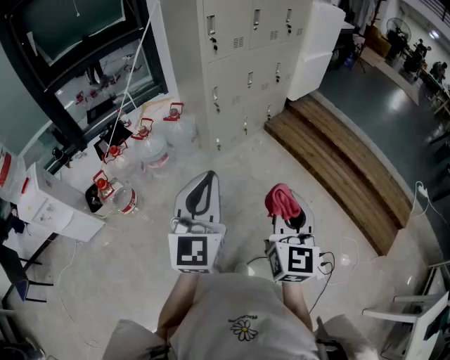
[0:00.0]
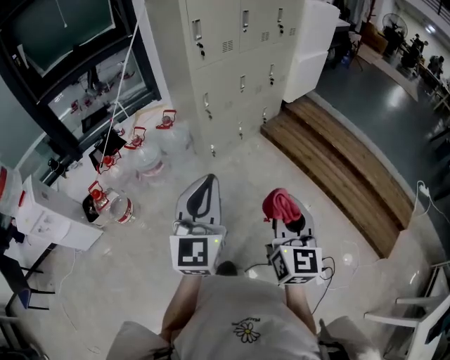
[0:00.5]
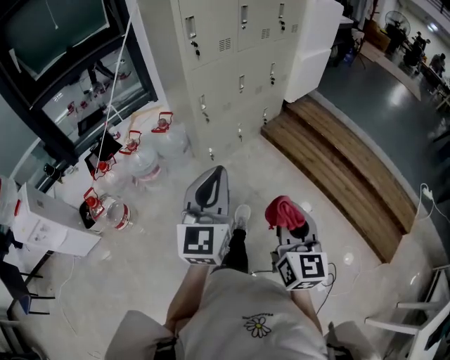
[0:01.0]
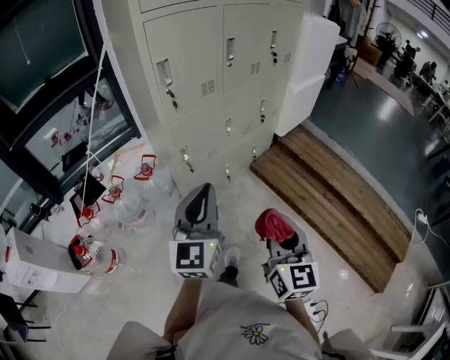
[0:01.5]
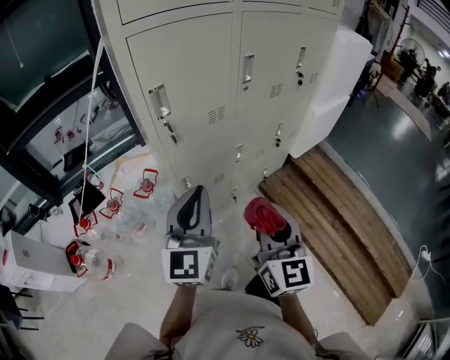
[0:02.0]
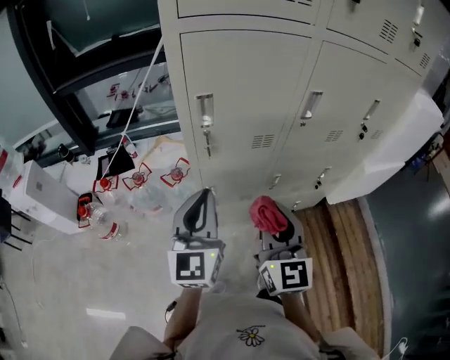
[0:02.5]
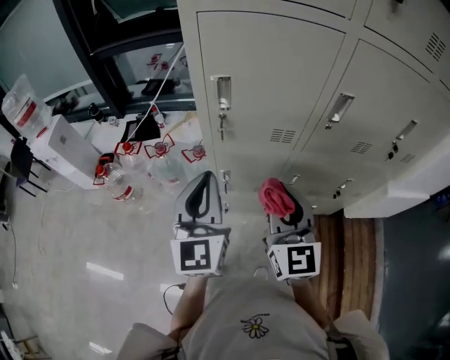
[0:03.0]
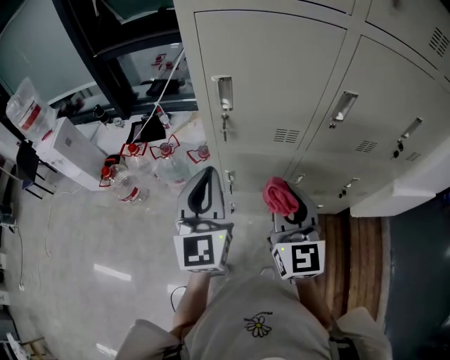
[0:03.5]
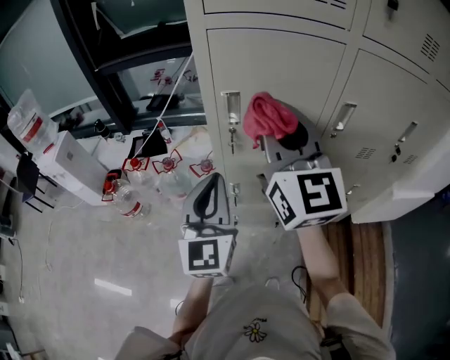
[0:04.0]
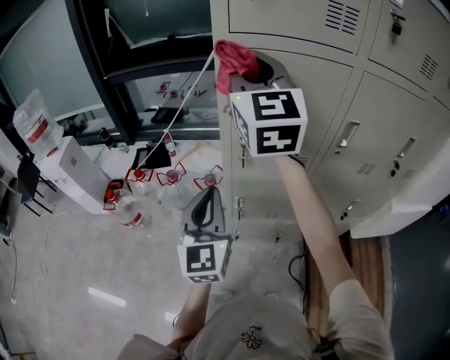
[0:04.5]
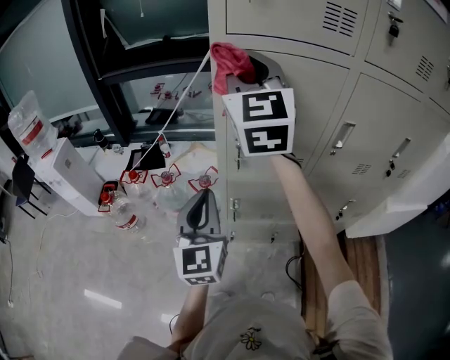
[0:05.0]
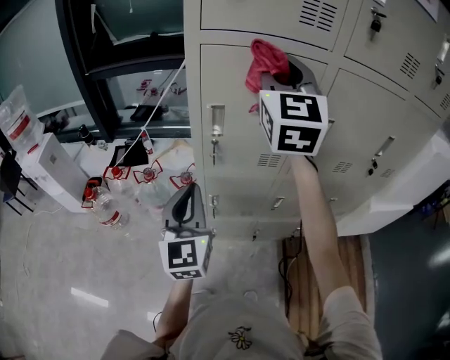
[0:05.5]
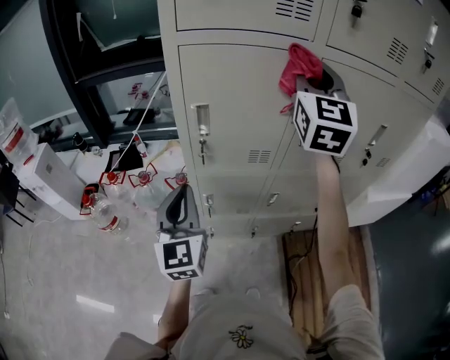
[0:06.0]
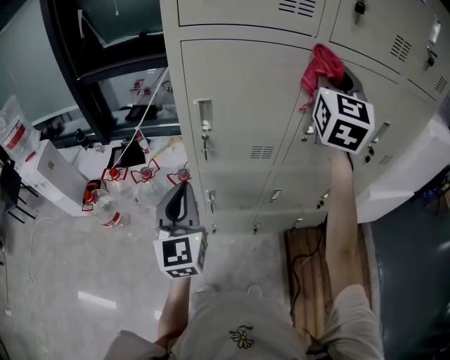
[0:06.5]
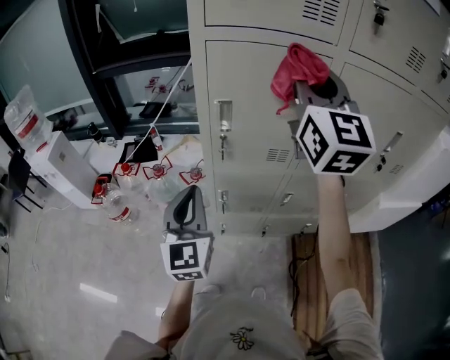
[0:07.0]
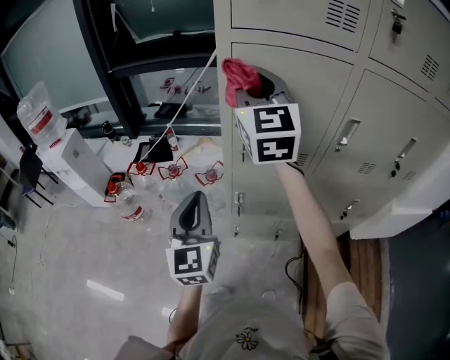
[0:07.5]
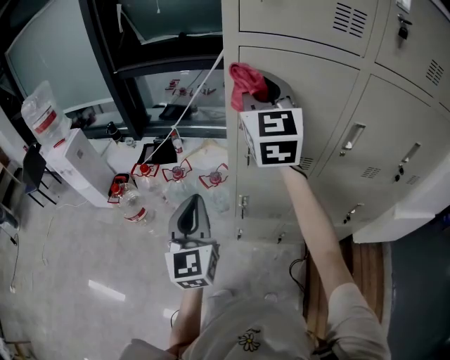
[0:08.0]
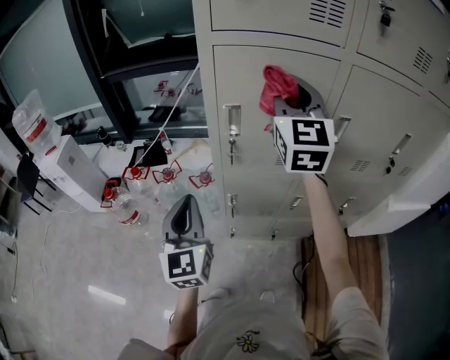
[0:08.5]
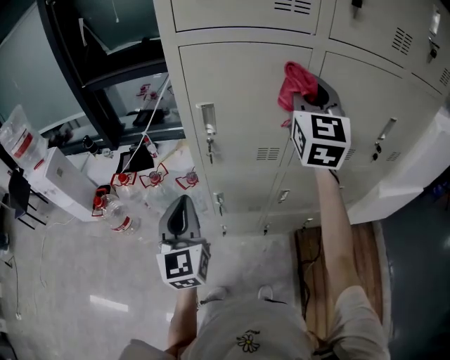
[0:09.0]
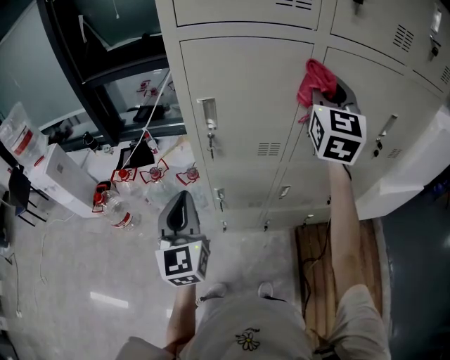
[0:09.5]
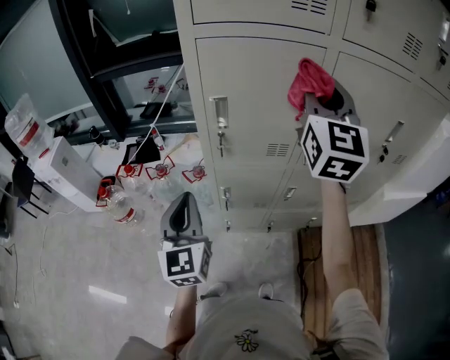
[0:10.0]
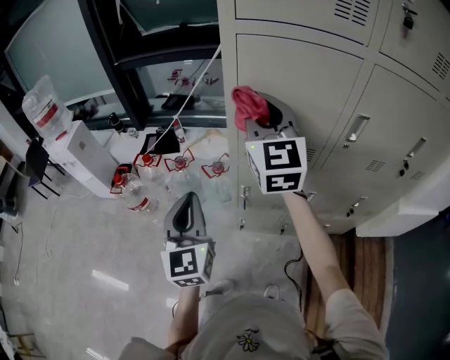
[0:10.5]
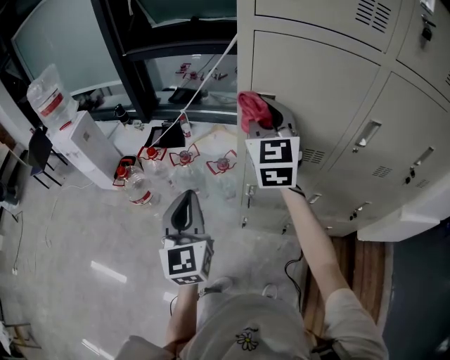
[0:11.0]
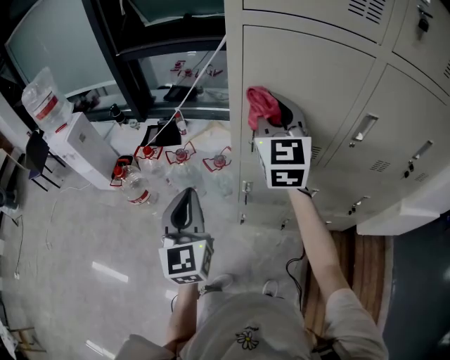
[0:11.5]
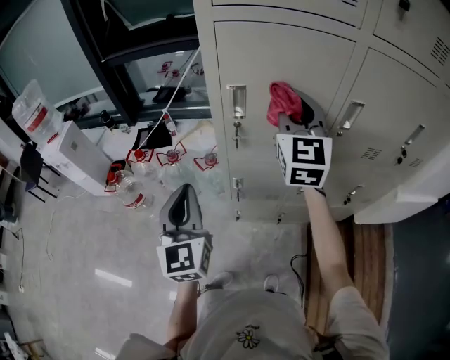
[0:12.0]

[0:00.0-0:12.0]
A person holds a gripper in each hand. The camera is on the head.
0:00.0 to 0:02.0: The two grippers travel together, forward, some 50 cm.
0:02.0 to 0:04.0: The right gripper changes place by about 30 cm, and rotates about 40 degrees; the left gripper changes place by about 10 cm, and swivels approximately 40 degrees.
0:04.0 to 0:06.0: The right gripper is displaced to the right, upward and forward by approximately 20 cm, and swivels some 30 degrees.
0:06.0 to 0:08.0: The left gripper moves to the left, about 10 cm, while the right gripper moves to the left, approximately 20 cm, and changes its angle by roughly 20 degrees.
0:08.0 to 0:10.0: The right gripper goes some 20 cm to the right.
0:10.0 to 0:12.0: The right gripper travels downward and forward by roughly 10 cm, and goes to the left and returns, about 20 cm each way.

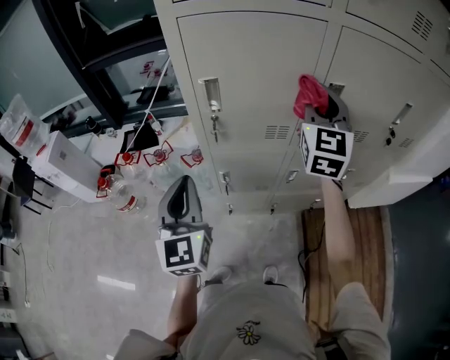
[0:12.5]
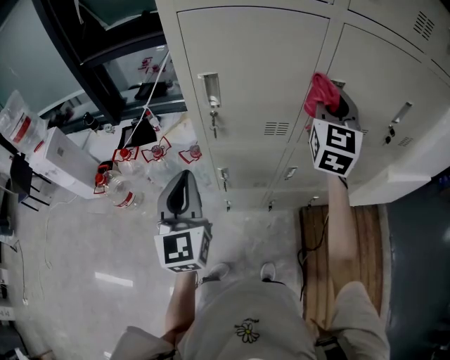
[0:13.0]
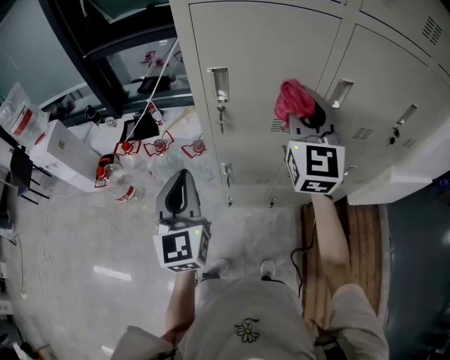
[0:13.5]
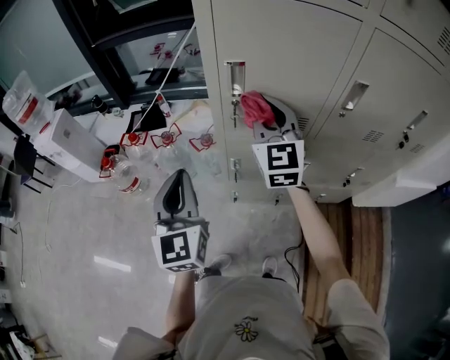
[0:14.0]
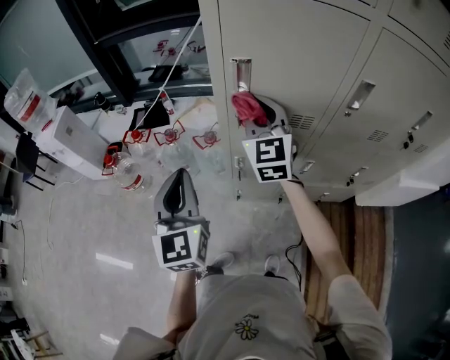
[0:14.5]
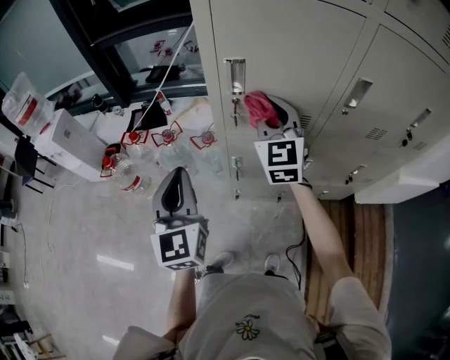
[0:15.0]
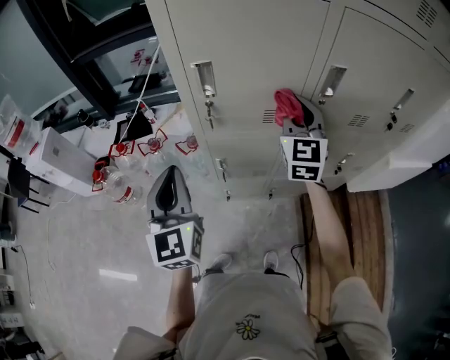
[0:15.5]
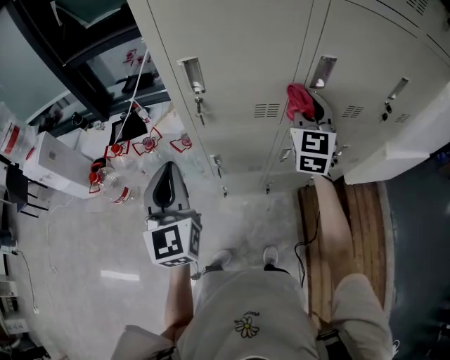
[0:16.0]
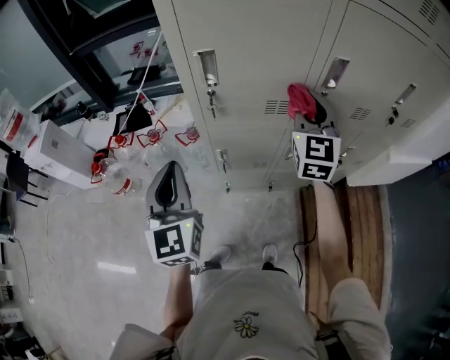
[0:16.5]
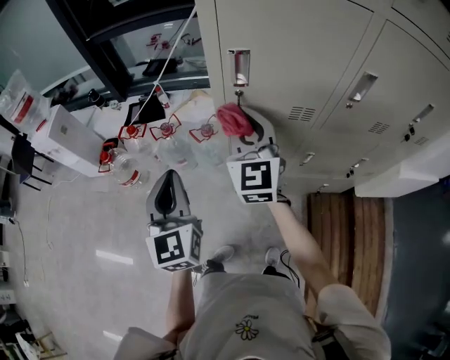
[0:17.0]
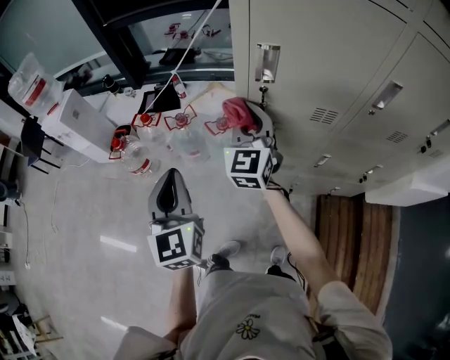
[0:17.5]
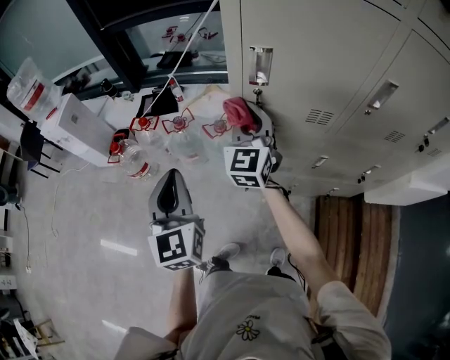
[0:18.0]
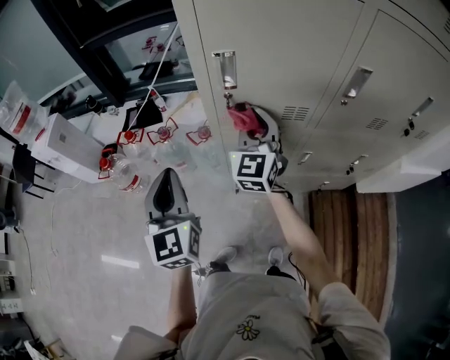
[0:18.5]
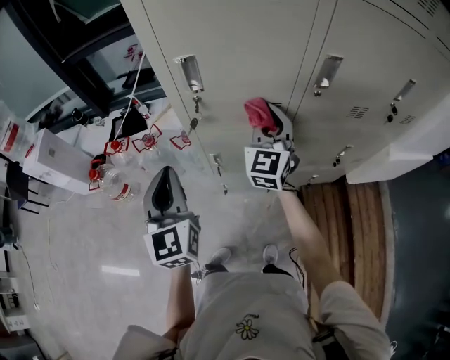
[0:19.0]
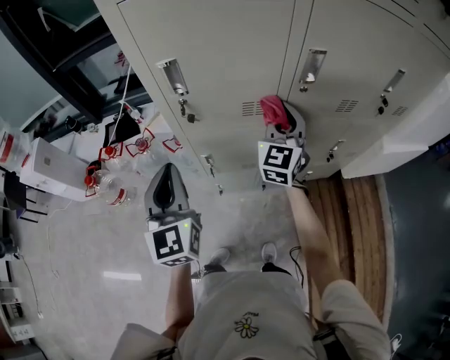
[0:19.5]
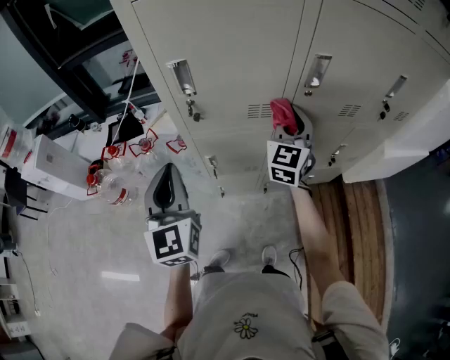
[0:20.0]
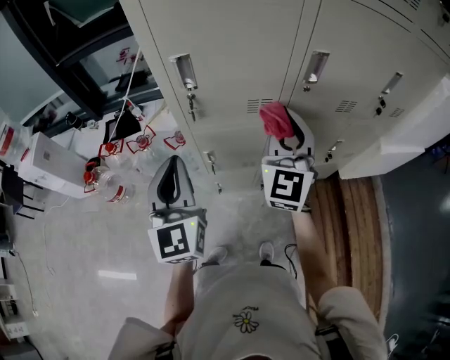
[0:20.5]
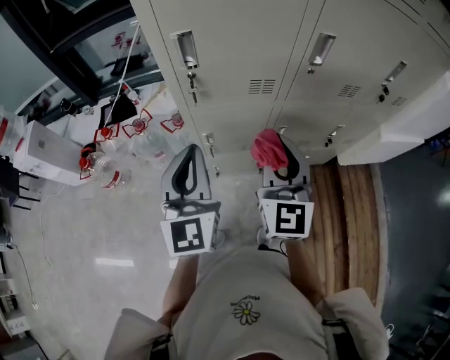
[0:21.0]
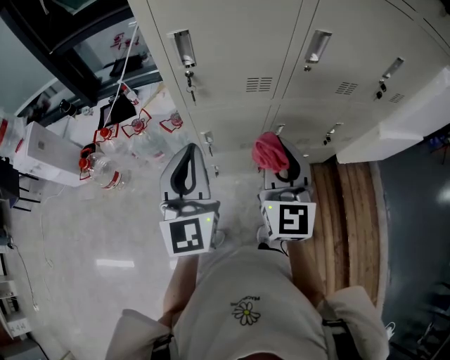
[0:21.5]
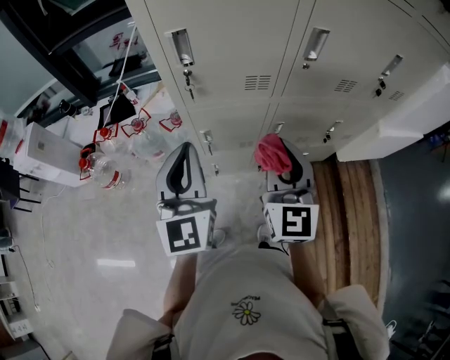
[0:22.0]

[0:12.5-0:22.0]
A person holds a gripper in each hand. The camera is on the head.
0:12.5 to 0:14.5: The left gripper is displaced to the left by some 5 cm. Meanwhile the right gripper goes some 25 cm to the left and downward, and swivels about 20 degrees.
0:14.5 to 0:16.5: The right gripper heads to the right, covering roughly 20 cm.
0:16.5 to 0:18.0: The left gripper heads to the left, covering roughly 10 cm. Meanwhile the right gripper shifts some 25 cm to the left.
0:18.0 to 0:20.0: The left gripper travels to the right by roughly 10 cm. Meanwhile the right gripper heads to the right, covering roughly 25 cm, and changes its angle by approximately 20 degrees.
0:20.0 to 0:22.0: The left gripper shifts by some 5 cm. The right gripper moves backward, about 20 cm.

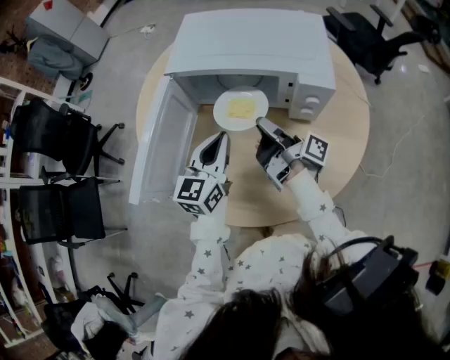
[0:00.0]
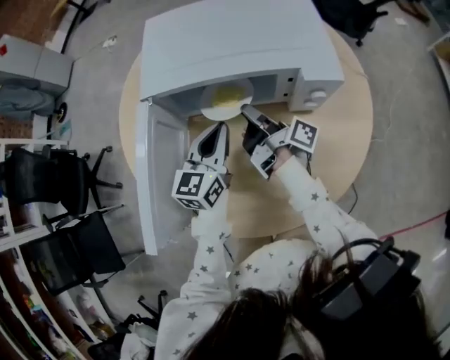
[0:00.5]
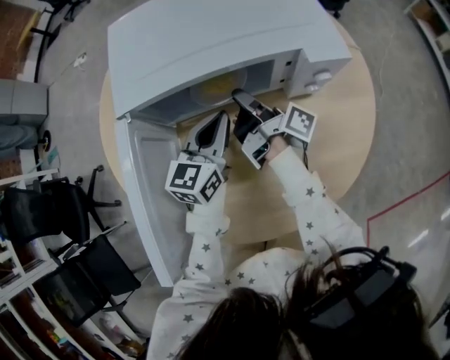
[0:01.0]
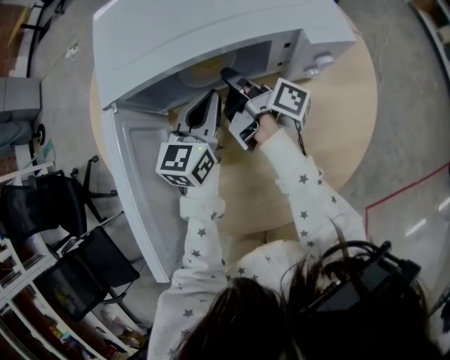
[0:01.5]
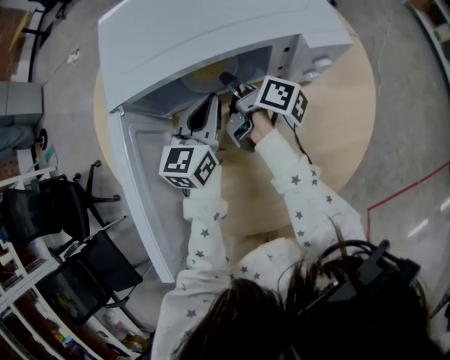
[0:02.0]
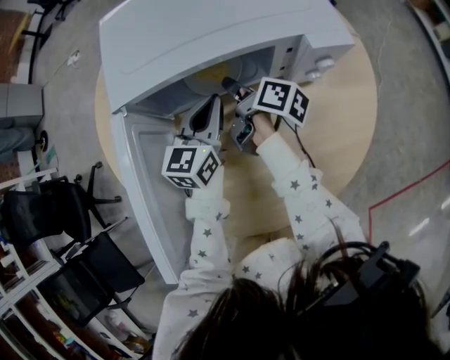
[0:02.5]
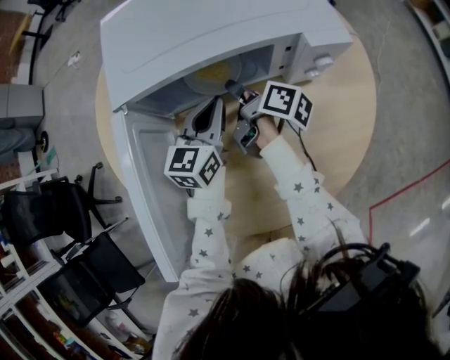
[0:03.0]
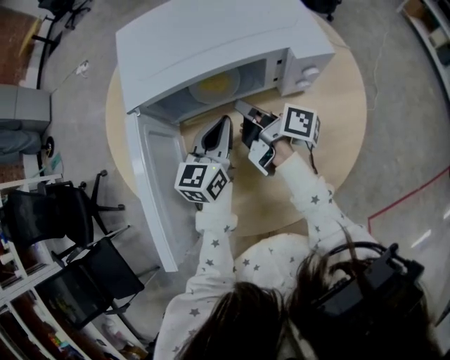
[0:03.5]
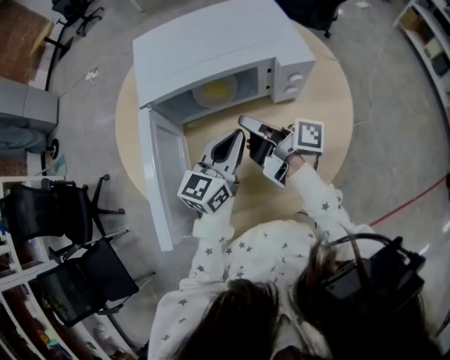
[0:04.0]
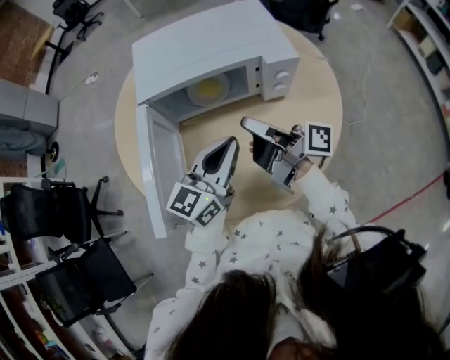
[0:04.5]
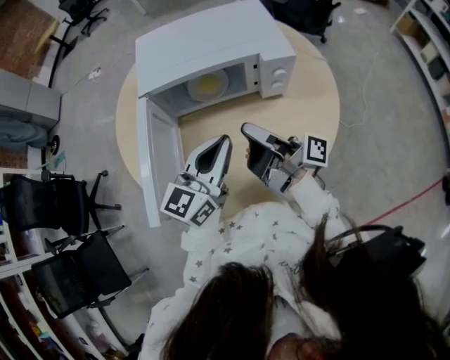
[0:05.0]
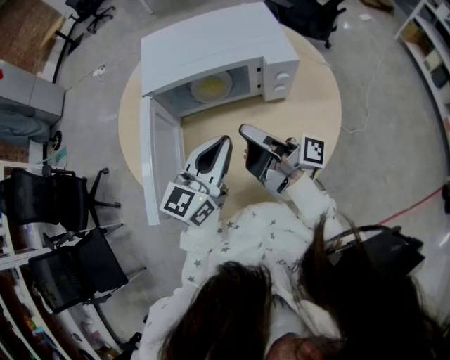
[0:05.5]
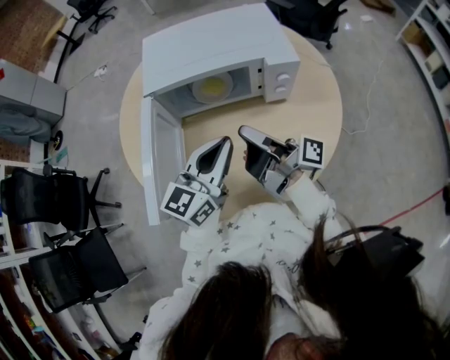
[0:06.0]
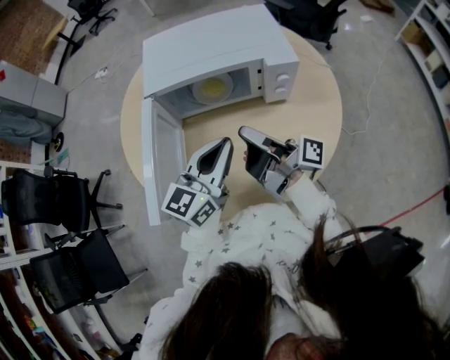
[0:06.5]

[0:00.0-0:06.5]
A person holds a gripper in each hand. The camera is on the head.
0:00.0 to 0:02.0: The left gripper moves some 15 cm, and rotates approximately 20 degrees.
0:02.0 to 0:04.5: The left gripper shifts by roughly 25 cm.
